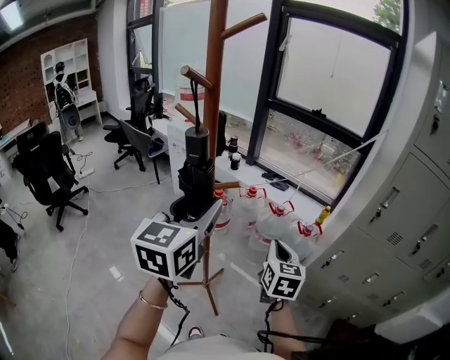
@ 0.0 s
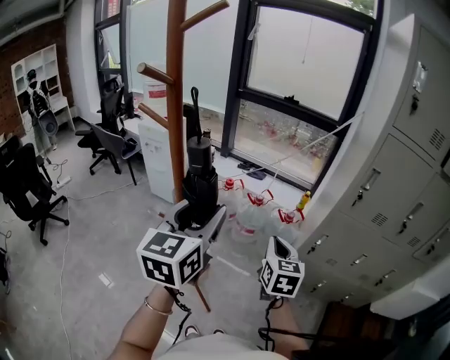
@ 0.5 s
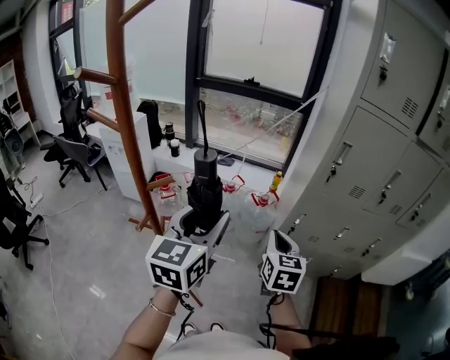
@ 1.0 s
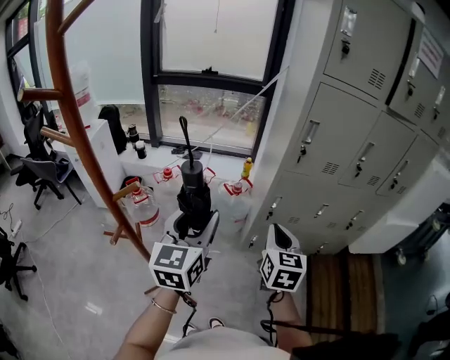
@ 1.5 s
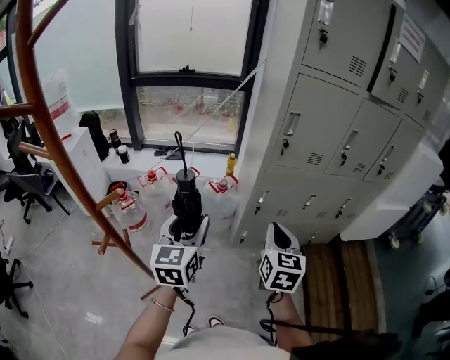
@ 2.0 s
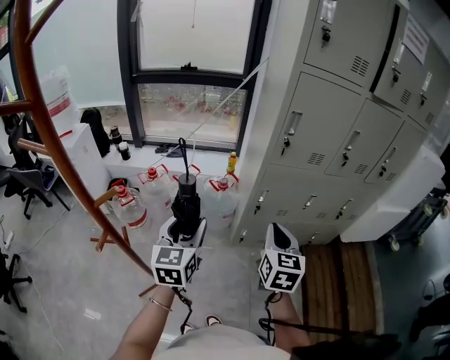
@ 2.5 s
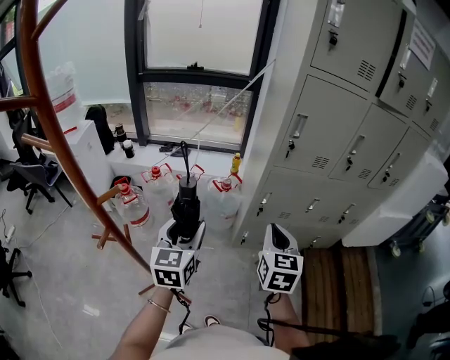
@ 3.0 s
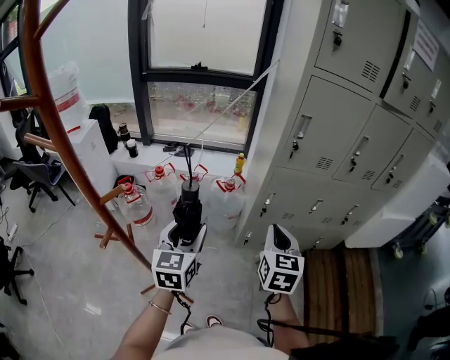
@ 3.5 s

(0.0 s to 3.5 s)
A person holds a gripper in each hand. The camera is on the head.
0.0 s - 2.0 s: The right gripper moves roughly 25 cm, and turns by some 40 degrees. Meanwhile the left gripper changes place by approximately 25 cm, and swivels some 30 degrees.
2.0 s - 3.5 s: There are only small adjustments of the grippers.

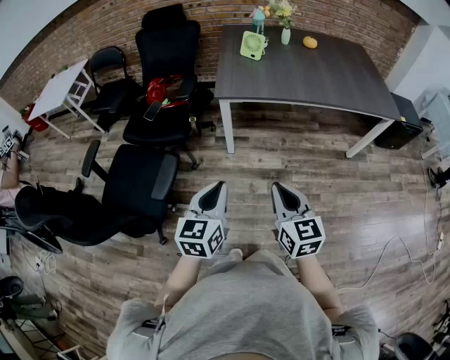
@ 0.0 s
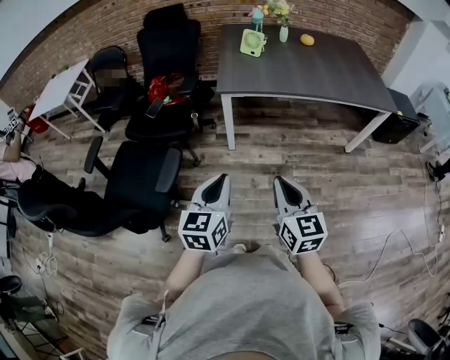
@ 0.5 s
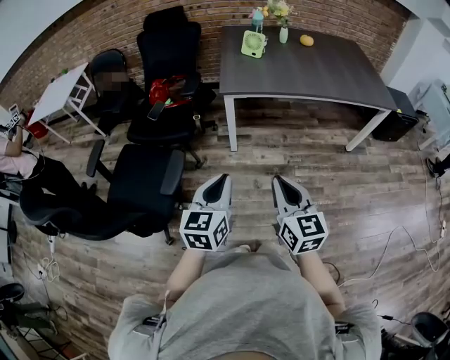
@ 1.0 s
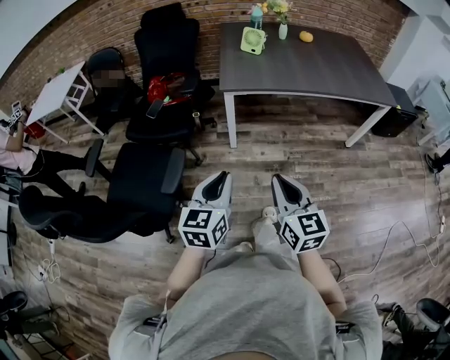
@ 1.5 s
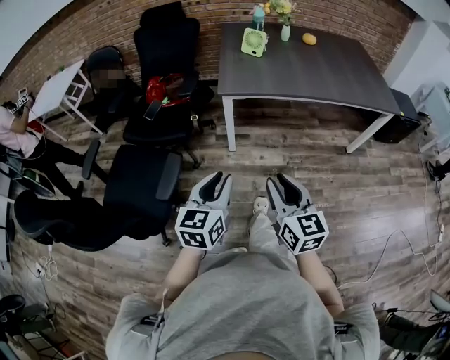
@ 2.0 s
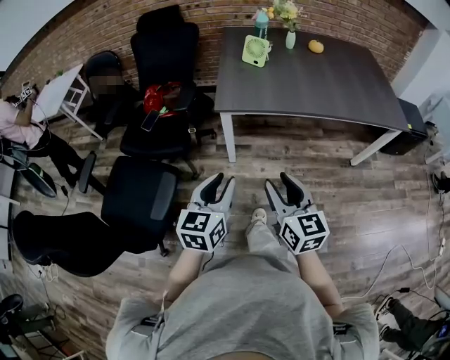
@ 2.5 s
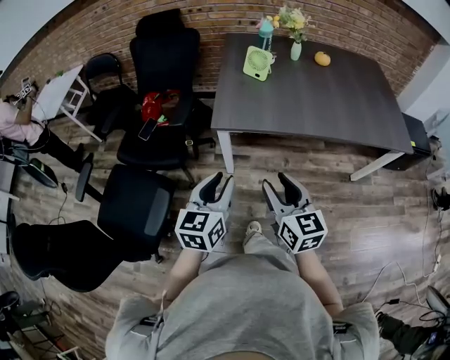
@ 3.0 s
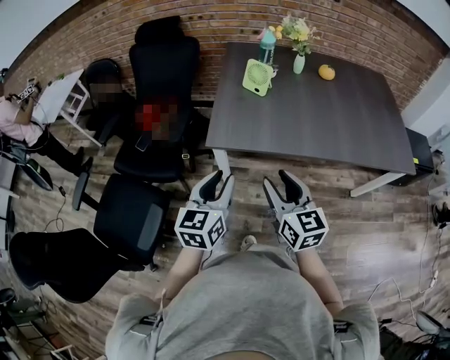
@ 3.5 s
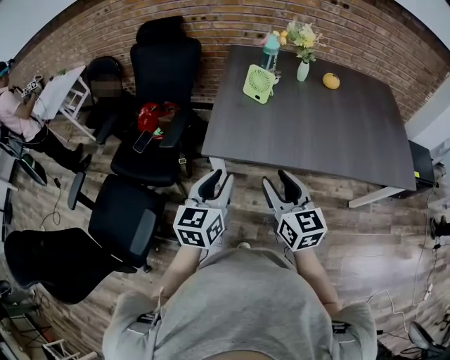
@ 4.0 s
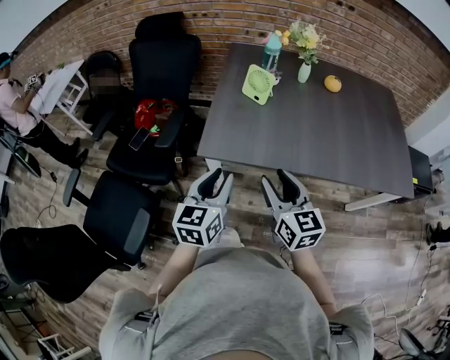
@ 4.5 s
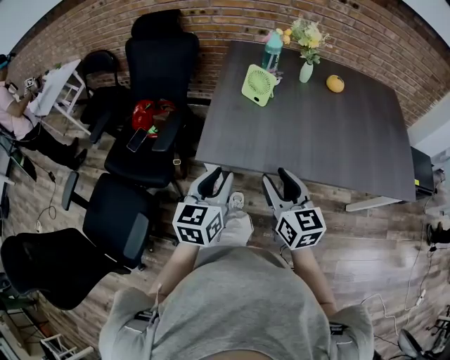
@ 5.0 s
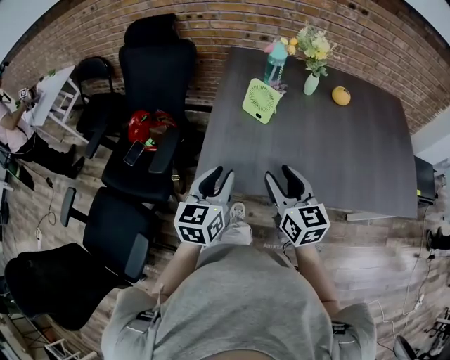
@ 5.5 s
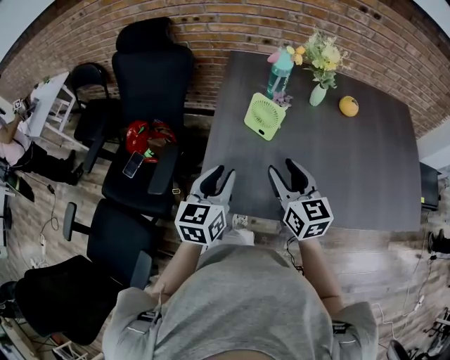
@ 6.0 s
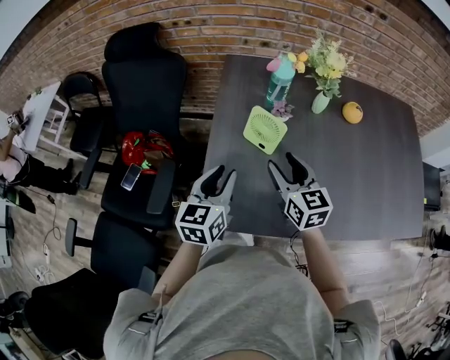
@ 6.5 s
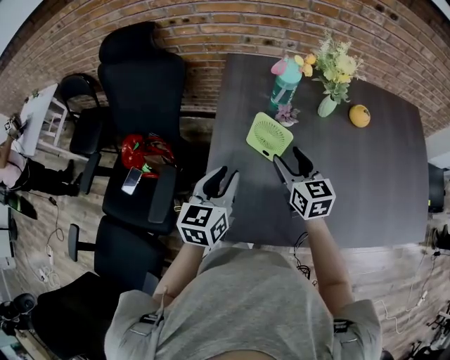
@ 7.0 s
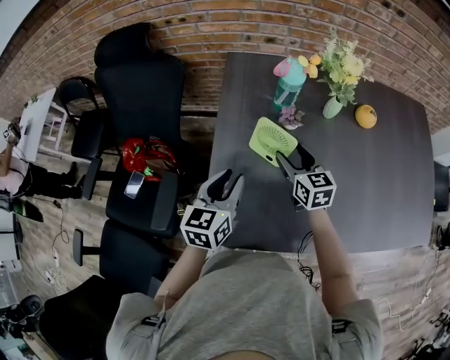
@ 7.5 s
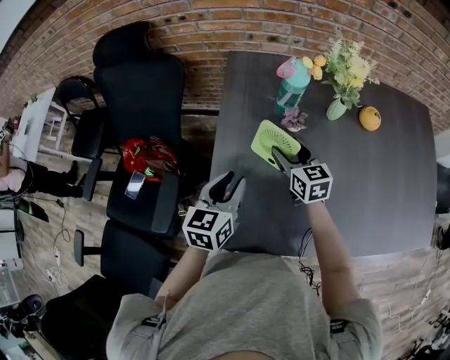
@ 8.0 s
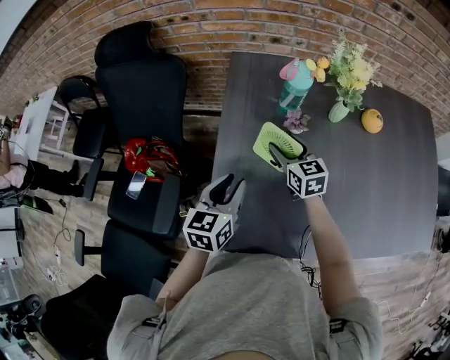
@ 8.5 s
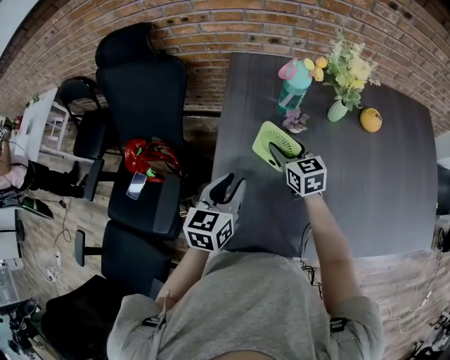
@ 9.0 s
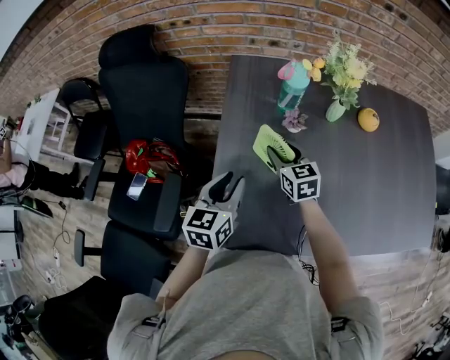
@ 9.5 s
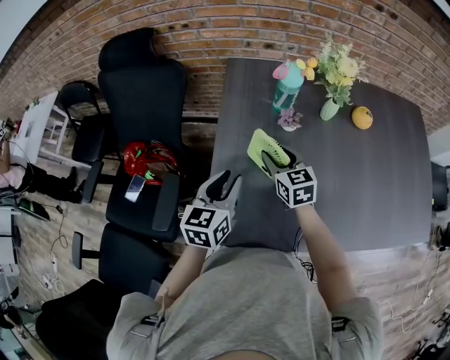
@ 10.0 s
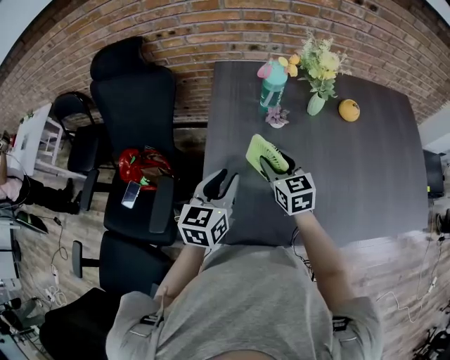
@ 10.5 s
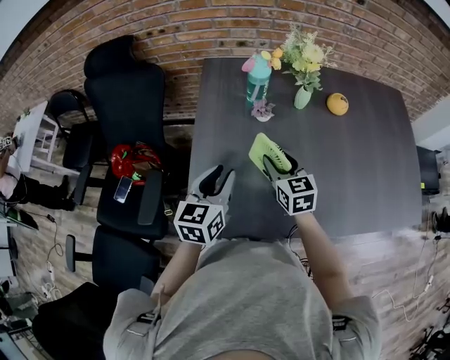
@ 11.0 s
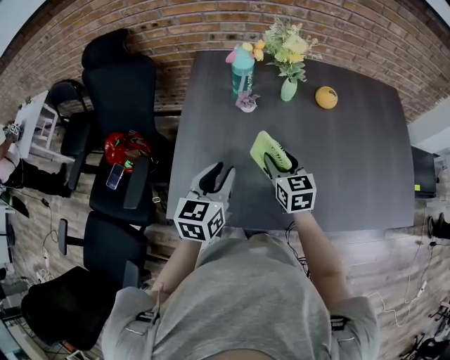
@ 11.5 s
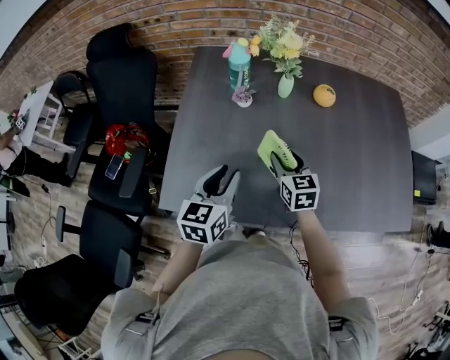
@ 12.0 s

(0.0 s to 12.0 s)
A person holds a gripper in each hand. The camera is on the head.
0.0 s - 2.0 s: The right gripper opens its fingers.
2.0 s - 4.0 s: The grippers both shift forward by about 35 cm.
4.0 s - 6.0 s: The two grippers go approximately 25 cm forward.
6.0 s - 8.0 s: The right gripper is displaced forward and downward by about 25 cm; the left gripper shifts roughly 15 cm forward.
8.0 s - 10.0 s: The right gripper ends up approximately 5 cm from where it was.
10.0 s - 12.0 s: Both grippers travel together to the right and backward, about 20 cm.

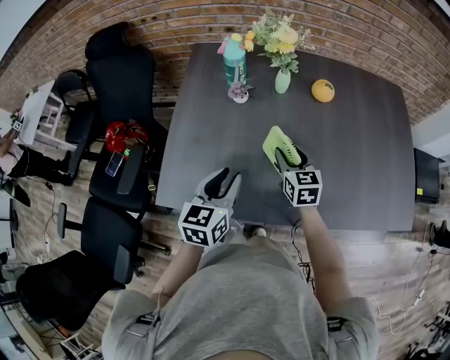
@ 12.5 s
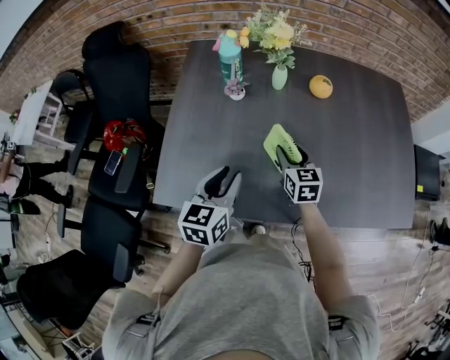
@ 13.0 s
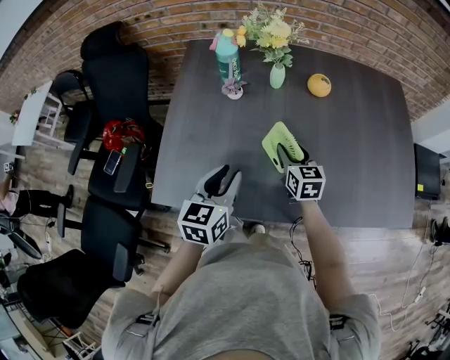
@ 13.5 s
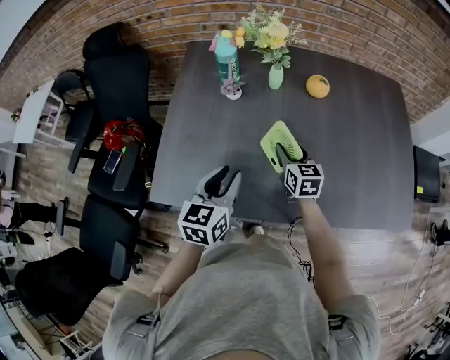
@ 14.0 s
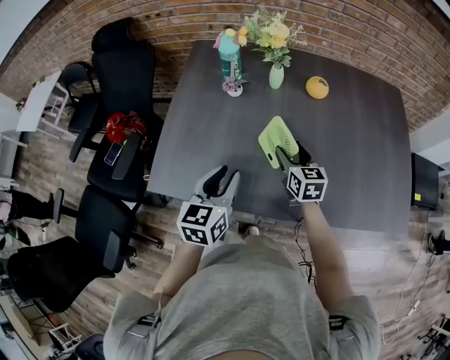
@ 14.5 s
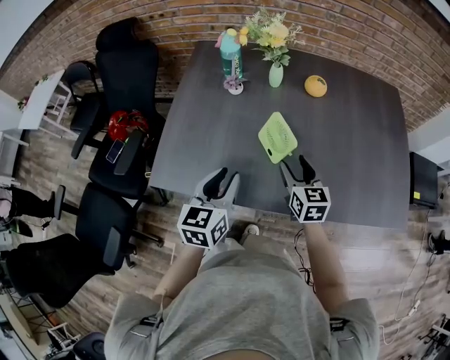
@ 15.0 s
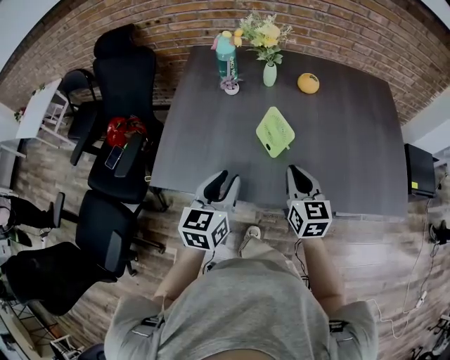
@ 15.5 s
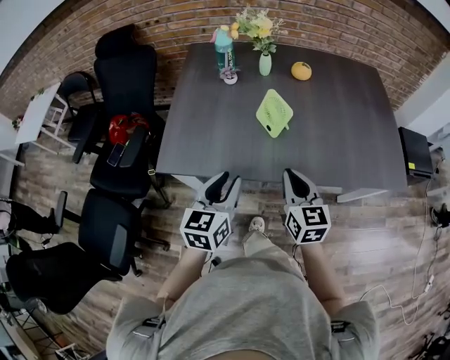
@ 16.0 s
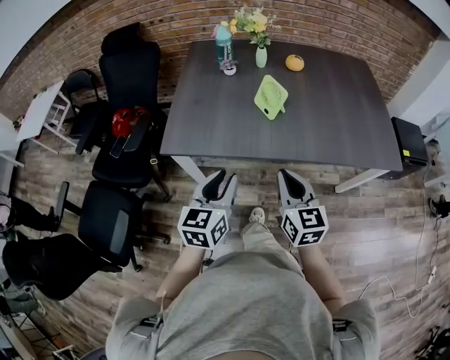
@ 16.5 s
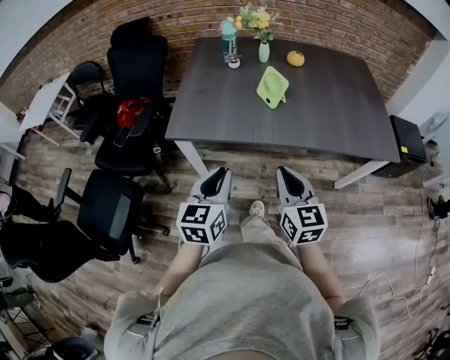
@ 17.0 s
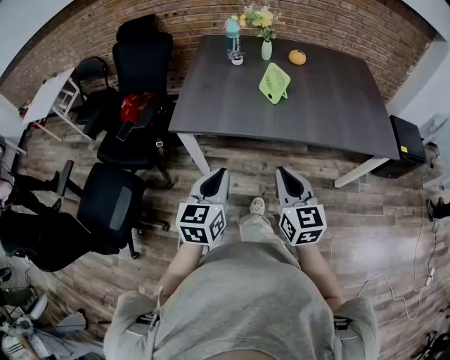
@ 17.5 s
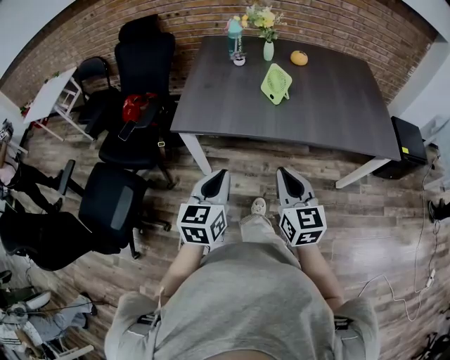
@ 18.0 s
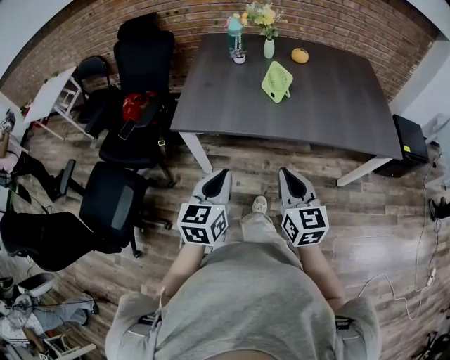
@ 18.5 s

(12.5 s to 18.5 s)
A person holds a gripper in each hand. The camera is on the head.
12.5 s - 14.5 s: The right gripper moves about 5 cm; the left gripper changes place by approximately 5 cm.
14.5 s - 16.5 s: The two grippers go some 30 cm backward. The right gripper closes up.
16.5 s - 18.5 s: The two grippers go some 10 cm backward. The left gripper closes.

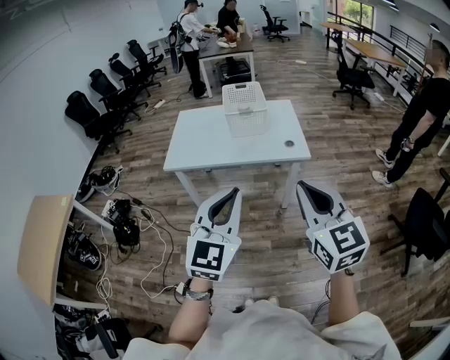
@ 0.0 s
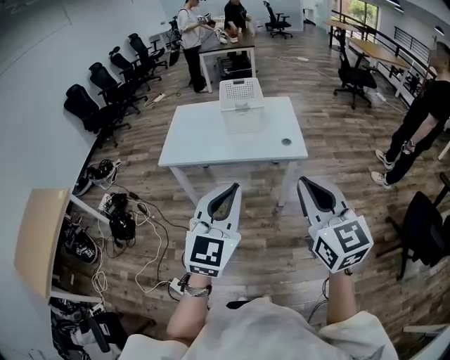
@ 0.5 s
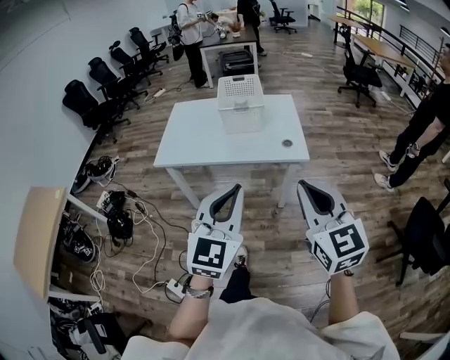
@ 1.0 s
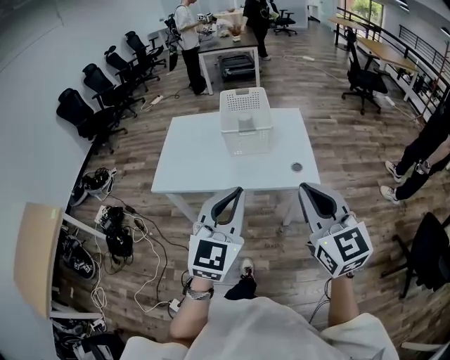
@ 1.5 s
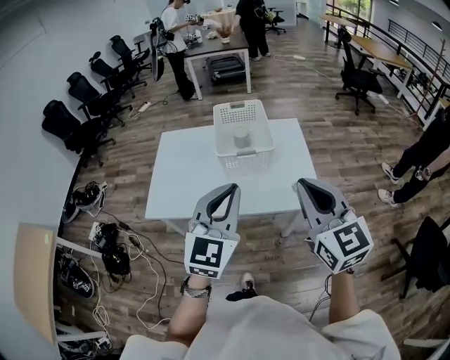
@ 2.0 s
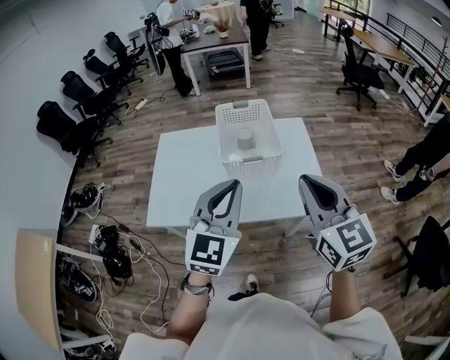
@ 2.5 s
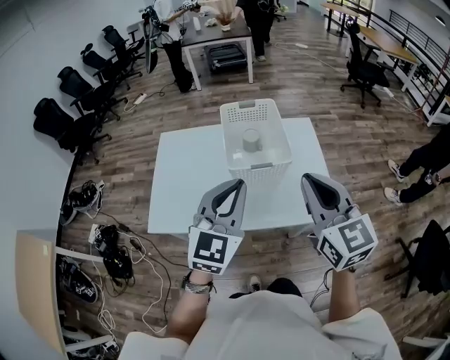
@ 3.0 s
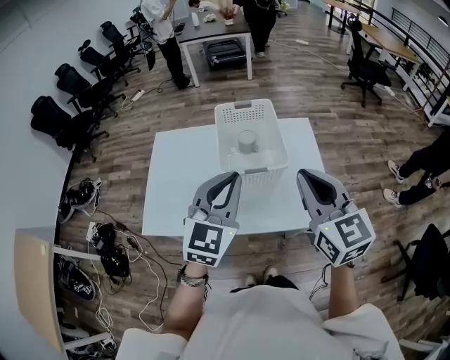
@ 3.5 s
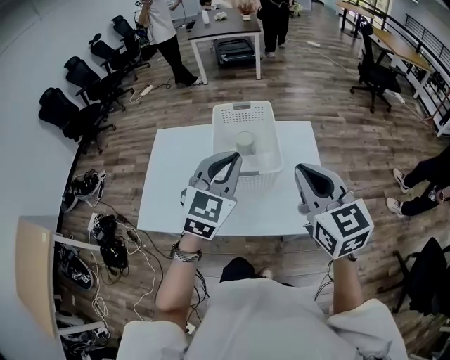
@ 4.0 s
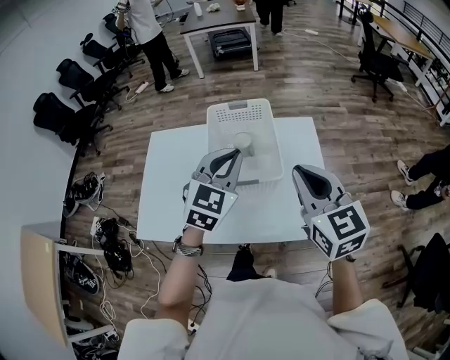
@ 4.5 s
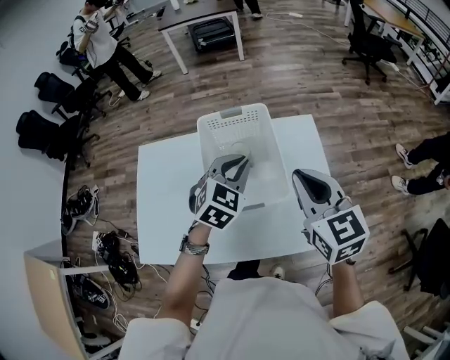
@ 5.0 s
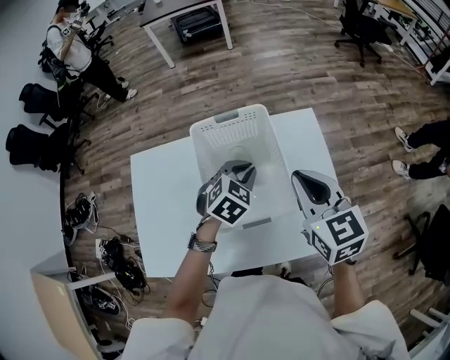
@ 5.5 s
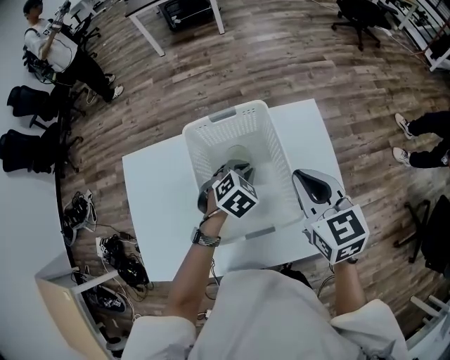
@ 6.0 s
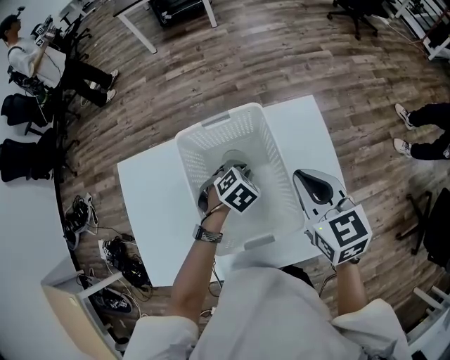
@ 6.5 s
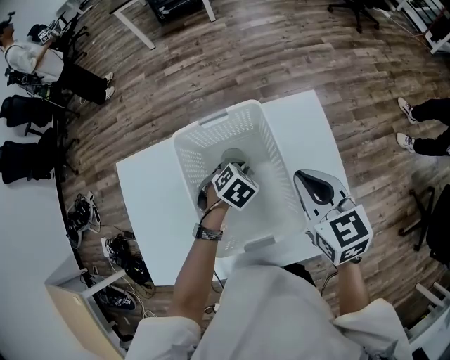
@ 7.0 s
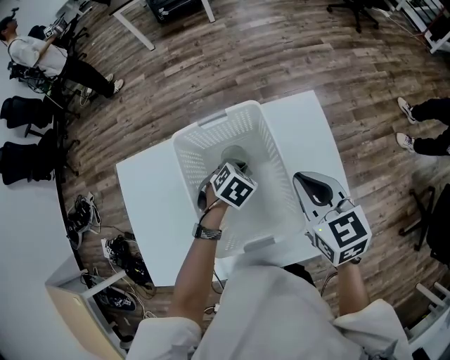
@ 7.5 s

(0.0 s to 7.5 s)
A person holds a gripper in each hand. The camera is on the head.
0.0 s - 2.0 s: The grippers both shift forward by roughly 35 cm.
2.0 s - 4.0 s: The two grippers go approximately 20 cm forward.
4.0 s - 5.5 s: The left gripper goes approximately 30 cm downward and forward, and points its fingers approximately 30 degrees further downward. The right gripper is displaced forward and downward by approximately 20 cm.
5.5 s - 7.5 s: The left gripper shifts about 15 cm downward, and swivels roughly 20 degrees. Meanwhile the right gripper goes approximately 10 cm downward and forward.
